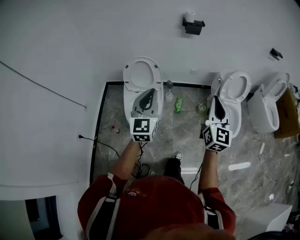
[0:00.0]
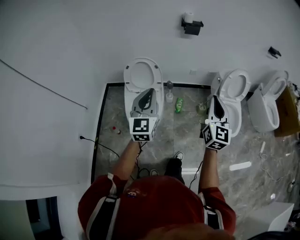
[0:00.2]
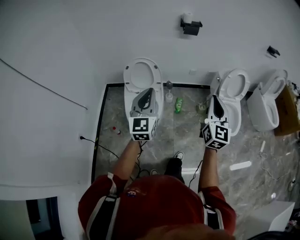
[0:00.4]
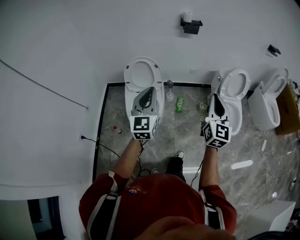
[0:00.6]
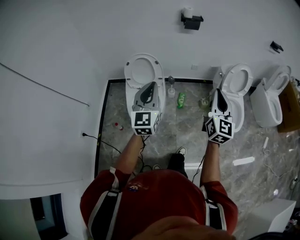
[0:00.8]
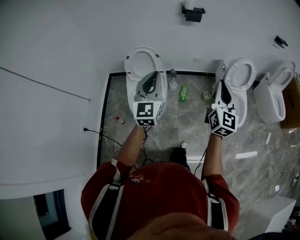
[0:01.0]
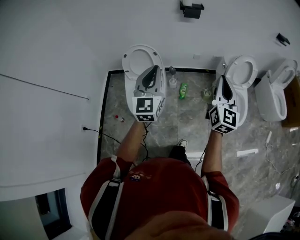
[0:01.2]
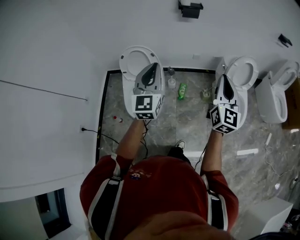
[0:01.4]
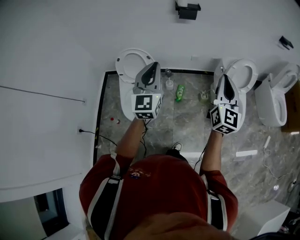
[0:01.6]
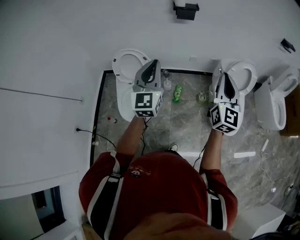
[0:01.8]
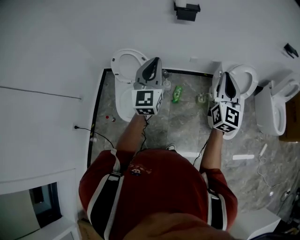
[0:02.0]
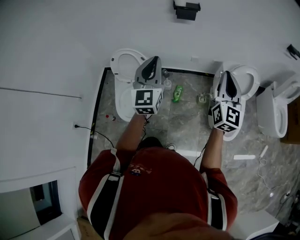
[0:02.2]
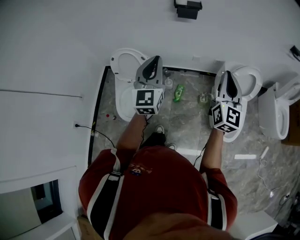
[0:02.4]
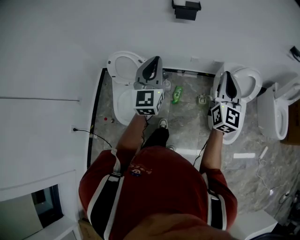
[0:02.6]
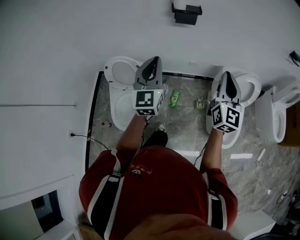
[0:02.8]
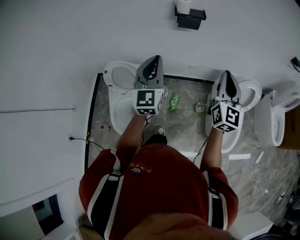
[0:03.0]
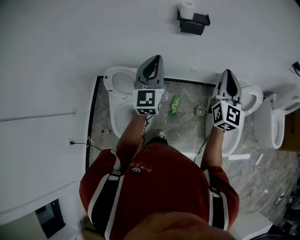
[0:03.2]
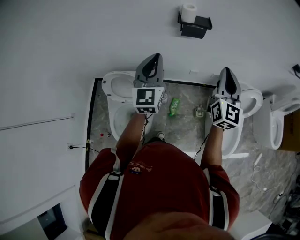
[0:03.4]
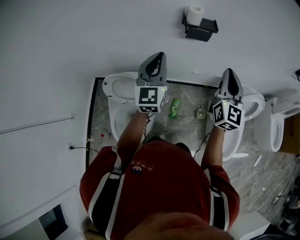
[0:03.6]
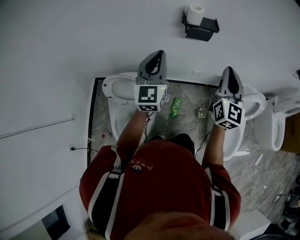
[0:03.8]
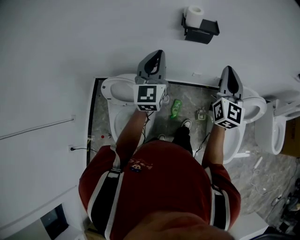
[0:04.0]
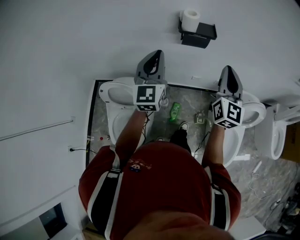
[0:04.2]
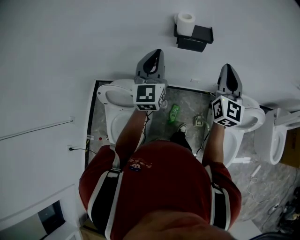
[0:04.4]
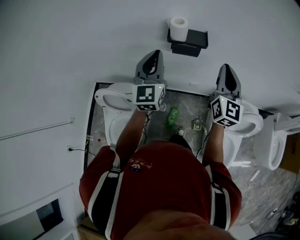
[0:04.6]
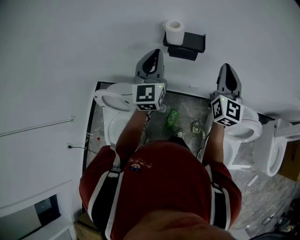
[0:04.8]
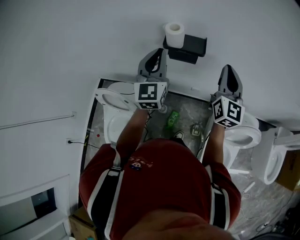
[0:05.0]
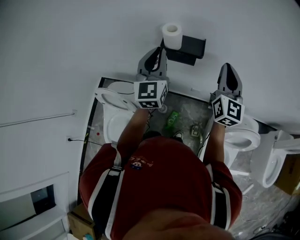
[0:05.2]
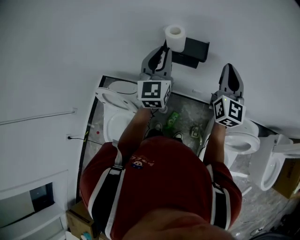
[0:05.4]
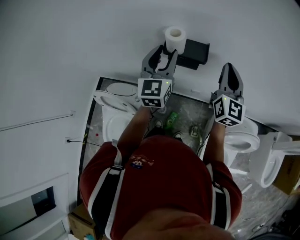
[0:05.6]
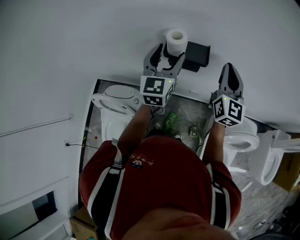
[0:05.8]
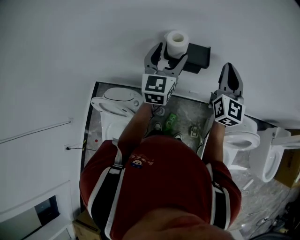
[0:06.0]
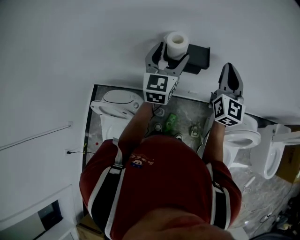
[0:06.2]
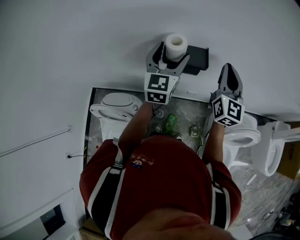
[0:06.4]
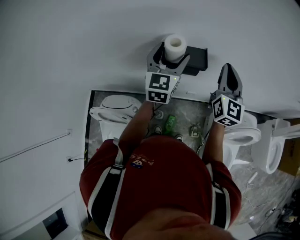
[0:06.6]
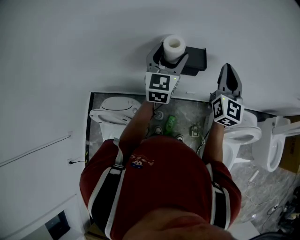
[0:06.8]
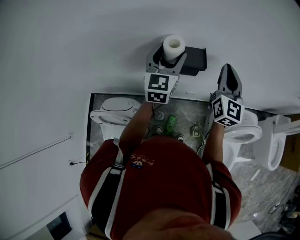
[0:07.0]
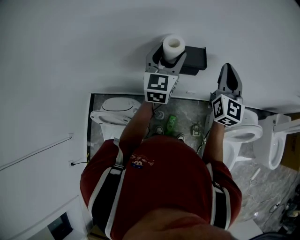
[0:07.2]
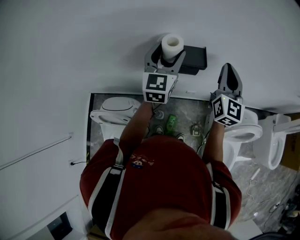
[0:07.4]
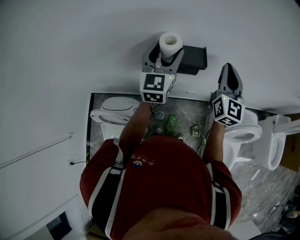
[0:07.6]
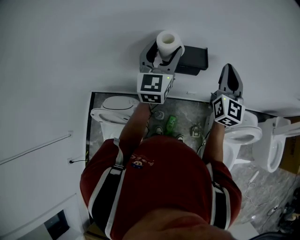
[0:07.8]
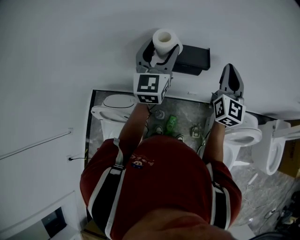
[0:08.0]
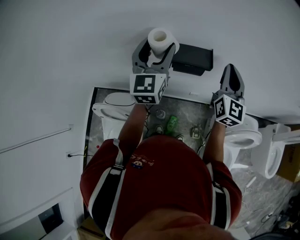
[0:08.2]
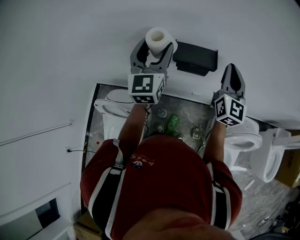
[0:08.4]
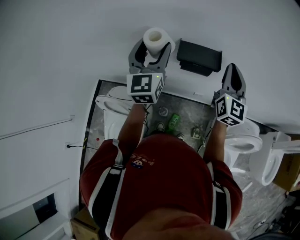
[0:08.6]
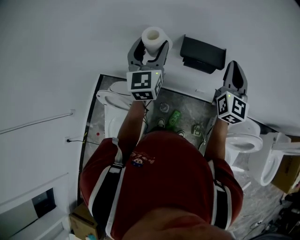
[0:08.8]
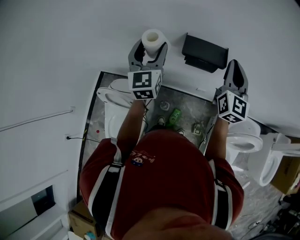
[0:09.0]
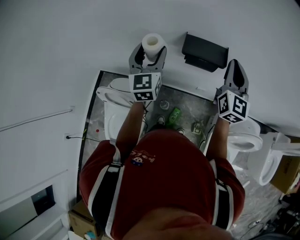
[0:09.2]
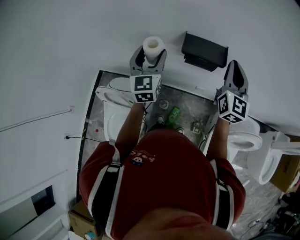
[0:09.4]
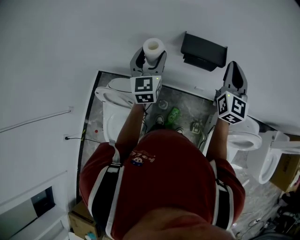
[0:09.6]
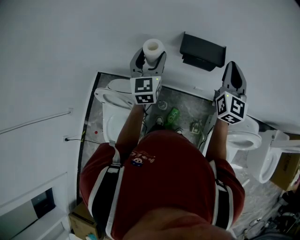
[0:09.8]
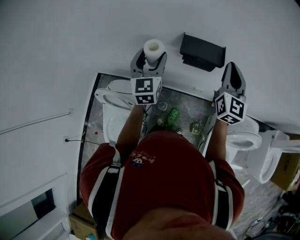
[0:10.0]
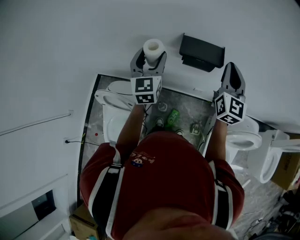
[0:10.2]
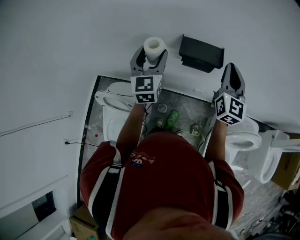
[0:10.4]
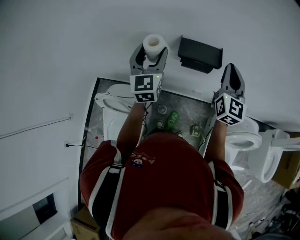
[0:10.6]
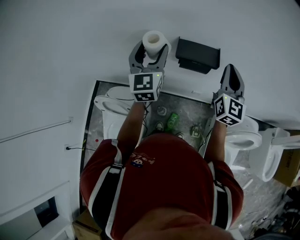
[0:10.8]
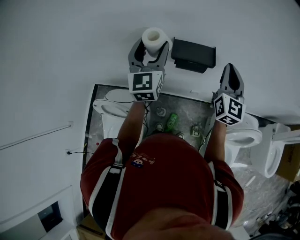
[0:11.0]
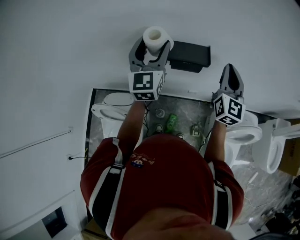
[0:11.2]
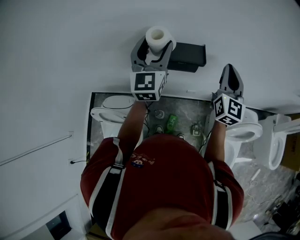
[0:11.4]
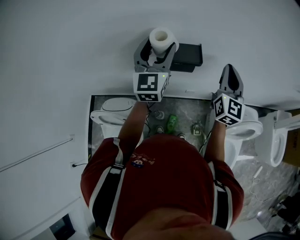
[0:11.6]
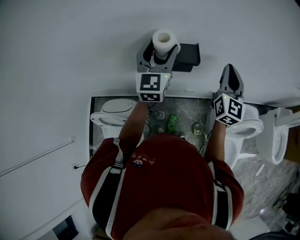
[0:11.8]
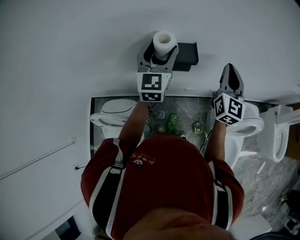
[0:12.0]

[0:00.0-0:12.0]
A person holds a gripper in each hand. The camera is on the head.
0.0 to 1.6 s: The grippers both shift forward and to the right by about 20 cm.
1.6 to 3.0 s: The two grippers go some 25 cm forward.
3.0 to 4.4 s: Both grippers move forward, some 25 cm.
4.4 to 6.0 s: The right gripper heads forward, covering approximately 15 cm; the left gripper shifts some 20 cm forward and to the right, and opens up.
6.0 to 7.6 s: The grippers stay close to where they were, moving slightly.
7.6 to 9.0 s: The left gripper travels to the left by some 15 cm, and turns by roughly 20 degrees, while the right gripper heads to the left, covering about 5 cm.
9.0 to 10.4 s: The grippers make only small movements.
10.4 to 12.0 s: The left gripper is displaced to the right and forward by approximately 15 cm. Meanwhile the right gripper shifts some 10 cm to the right.

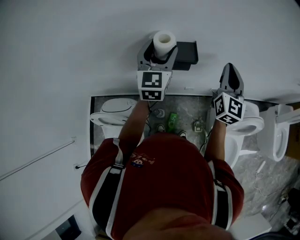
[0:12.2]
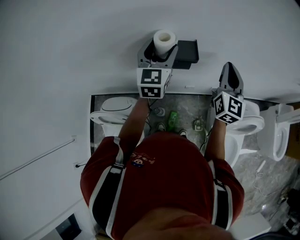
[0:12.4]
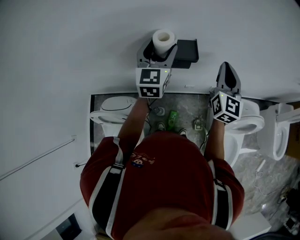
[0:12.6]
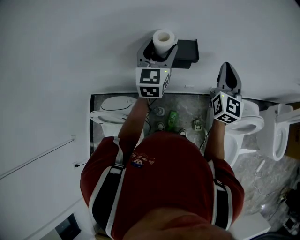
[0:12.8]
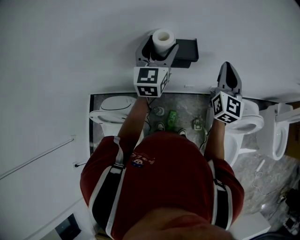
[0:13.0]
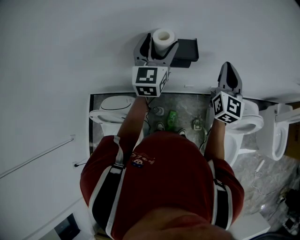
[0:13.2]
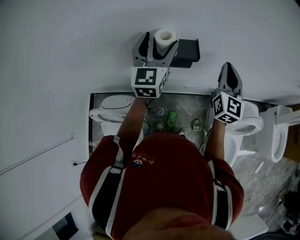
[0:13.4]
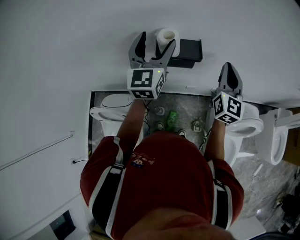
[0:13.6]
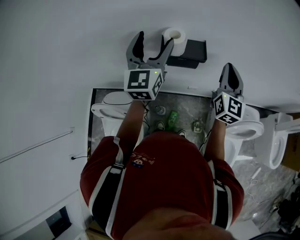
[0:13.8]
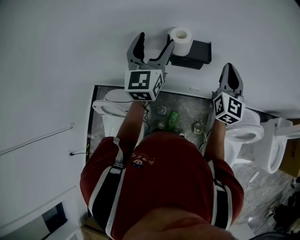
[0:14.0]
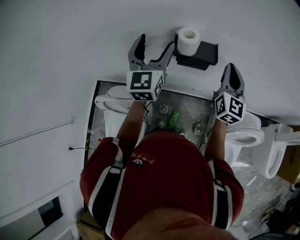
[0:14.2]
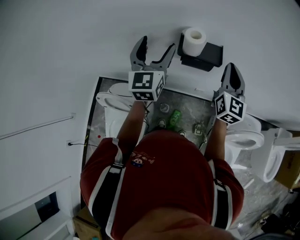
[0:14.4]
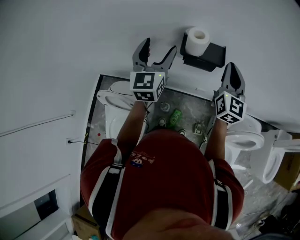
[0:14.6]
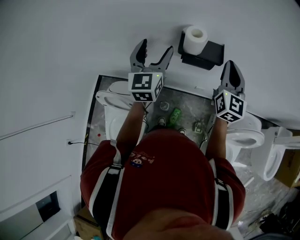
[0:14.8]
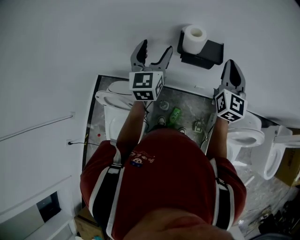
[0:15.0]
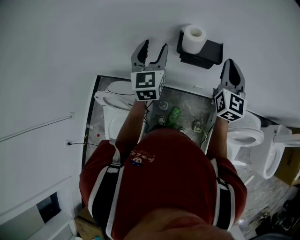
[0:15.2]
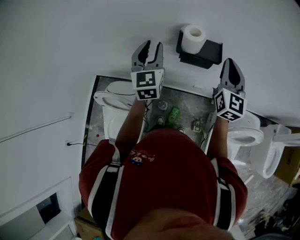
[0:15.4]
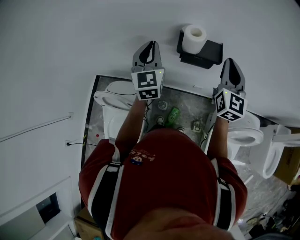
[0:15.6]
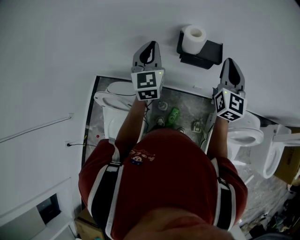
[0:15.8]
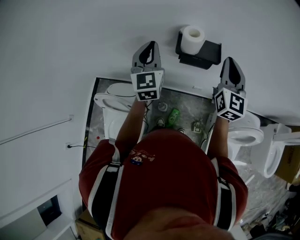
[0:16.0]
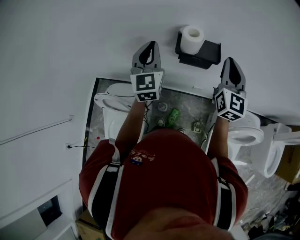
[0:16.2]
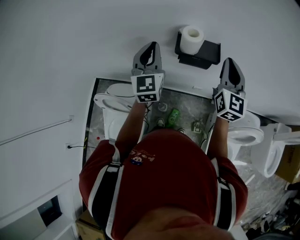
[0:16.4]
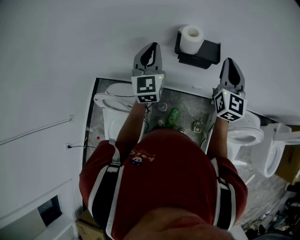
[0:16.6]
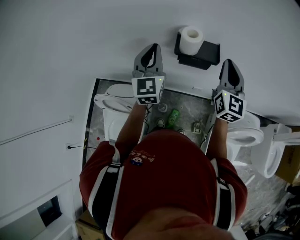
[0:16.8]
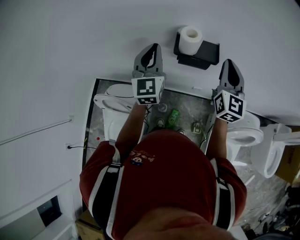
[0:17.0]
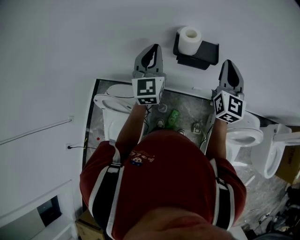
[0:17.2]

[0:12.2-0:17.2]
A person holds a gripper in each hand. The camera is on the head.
12.2 to 13.8 s: The left gripper is displaced upward by about 5 cm.
13.8 to 15.6 s: The left gripper goes roughly 10 cm to the left and downward, and closes. Meanwhile the right gripper shifts roughly 5 cm to the left.
15.6 to 17.2 s: The grippers stay close to where they were, moving slightly.

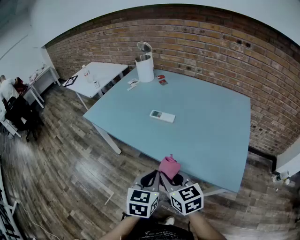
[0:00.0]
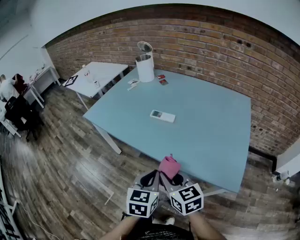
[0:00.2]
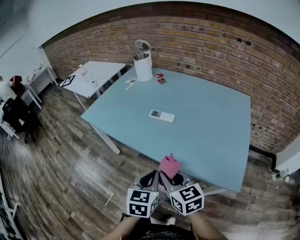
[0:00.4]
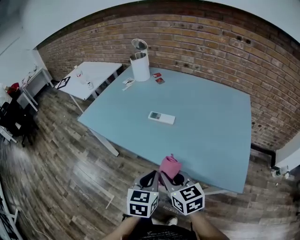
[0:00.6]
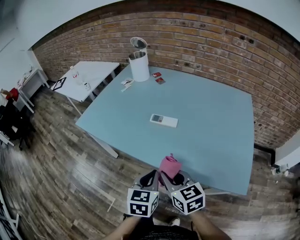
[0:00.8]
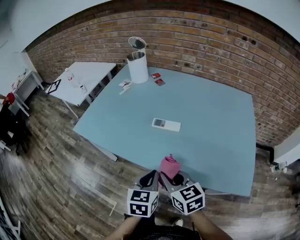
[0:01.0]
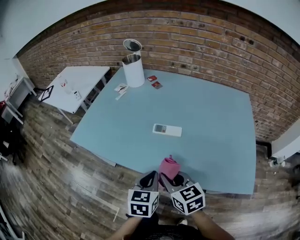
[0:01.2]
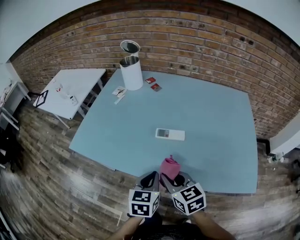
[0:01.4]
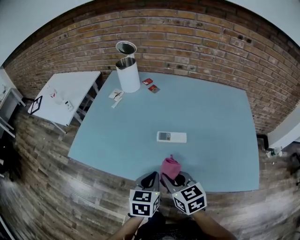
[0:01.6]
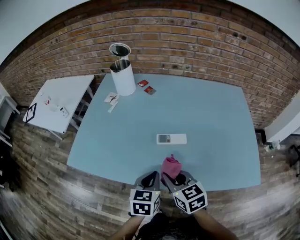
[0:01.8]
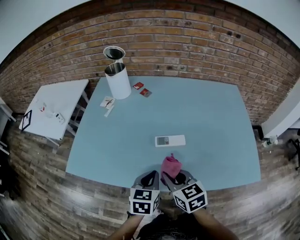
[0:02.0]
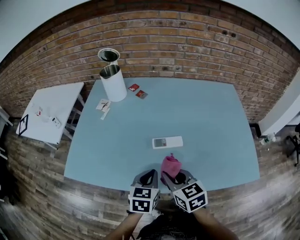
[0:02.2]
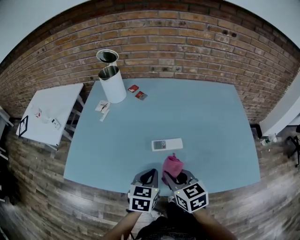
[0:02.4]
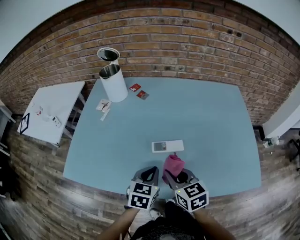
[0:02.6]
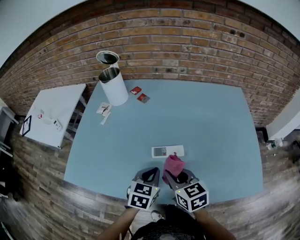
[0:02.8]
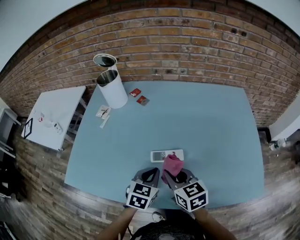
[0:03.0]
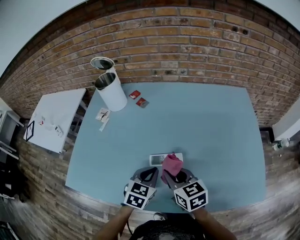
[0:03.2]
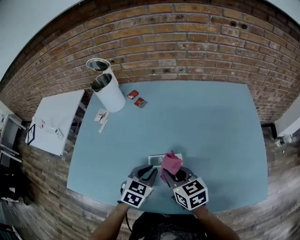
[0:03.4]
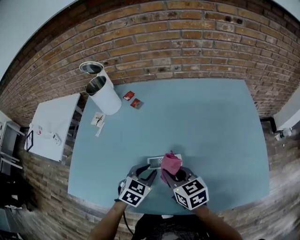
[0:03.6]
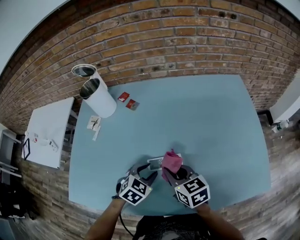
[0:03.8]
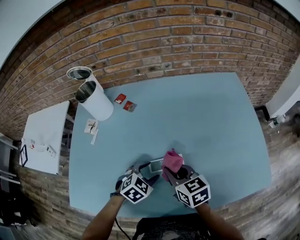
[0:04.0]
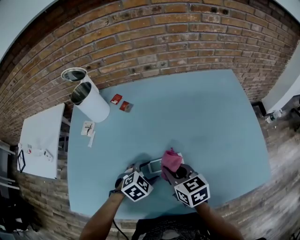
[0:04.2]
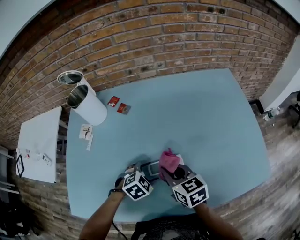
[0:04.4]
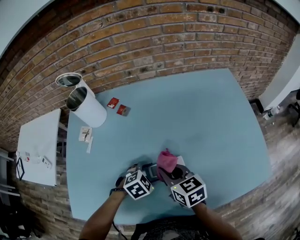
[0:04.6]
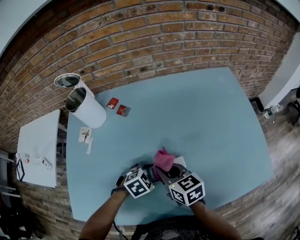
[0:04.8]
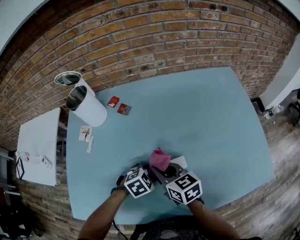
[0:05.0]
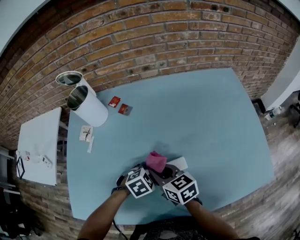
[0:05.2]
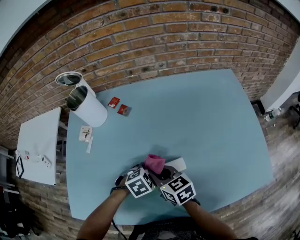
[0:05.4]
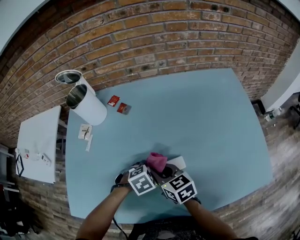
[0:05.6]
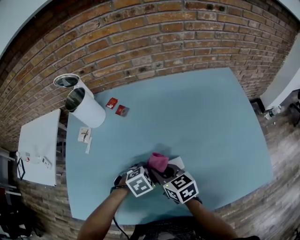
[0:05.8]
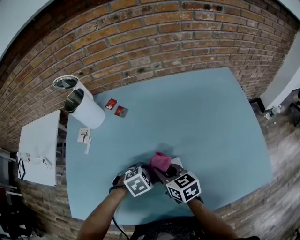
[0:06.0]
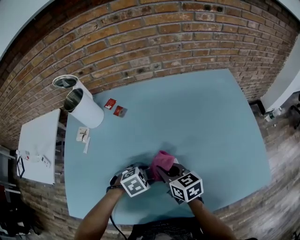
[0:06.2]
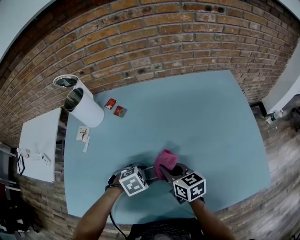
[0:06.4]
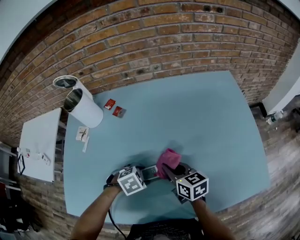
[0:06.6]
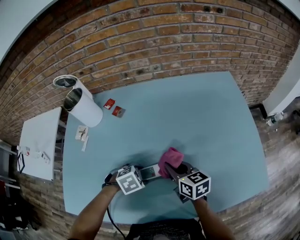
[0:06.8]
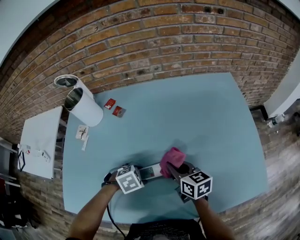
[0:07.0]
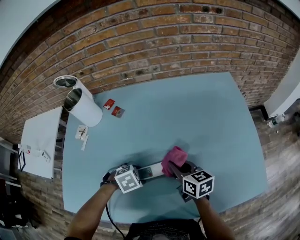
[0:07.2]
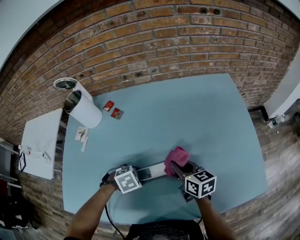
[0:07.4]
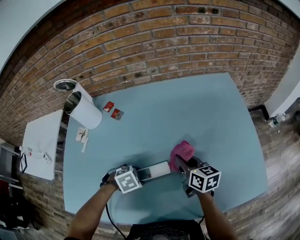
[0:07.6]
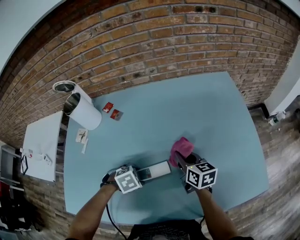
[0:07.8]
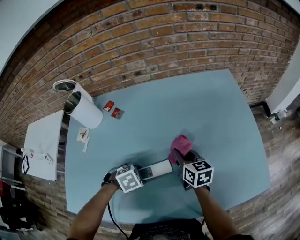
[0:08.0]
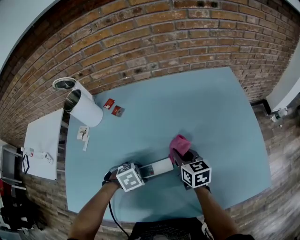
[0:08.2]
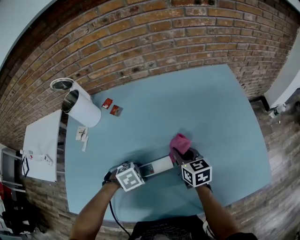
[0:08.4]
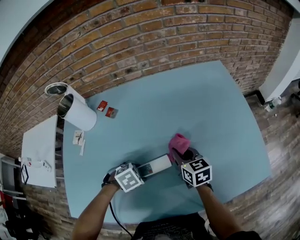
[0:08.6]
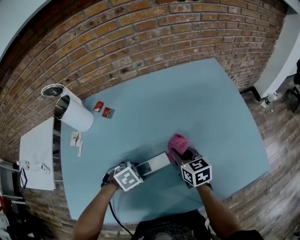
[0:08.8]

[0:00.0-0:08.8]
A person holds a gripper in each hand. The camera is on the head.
0.0 to 1.4 s: The two grippers go approximately 20 cm forward and to the left.
1.4 to 3.0 s: Both grippers travel together forward, about 15 cm. The left gripper turns by about 20 degrees.
3.0 to 4.4 s: The left gripper is displaced downward and forward by approximately 10 cm, rotates about 50 degrees, and opens its fingers, while the right gripper shifts some 5 cm forward.
4.4 to 5.8 s: The right gripper shifts by roughly 5 cm.
5.8 to 7.4 s: The right gripper ends up roughly 15 cm from where it was.
7.4 to 8.8 s: The grippers stay close to where they were, moving slightly.
